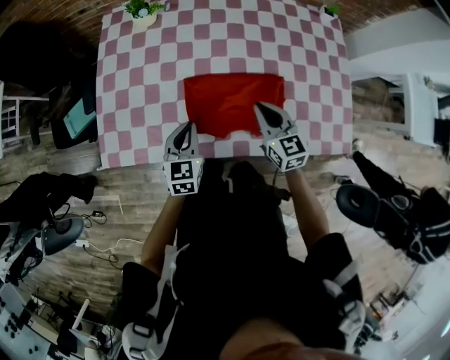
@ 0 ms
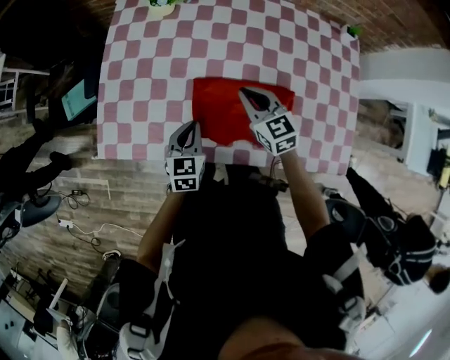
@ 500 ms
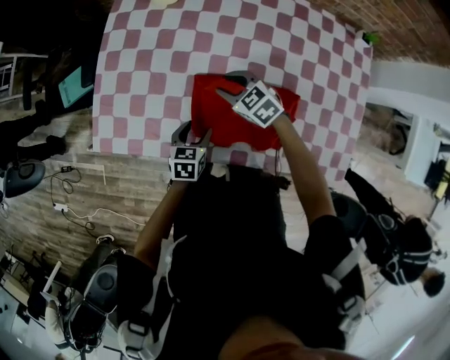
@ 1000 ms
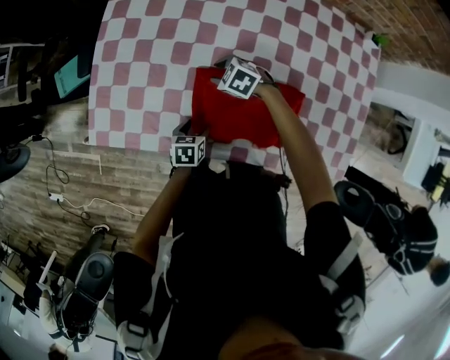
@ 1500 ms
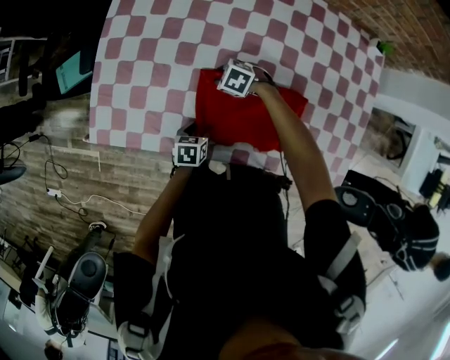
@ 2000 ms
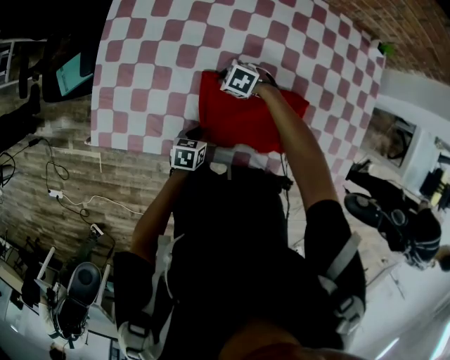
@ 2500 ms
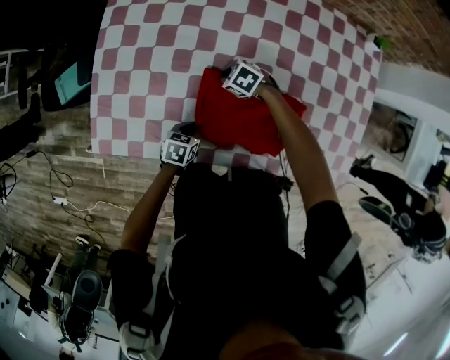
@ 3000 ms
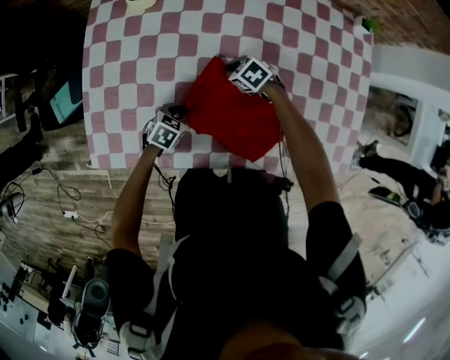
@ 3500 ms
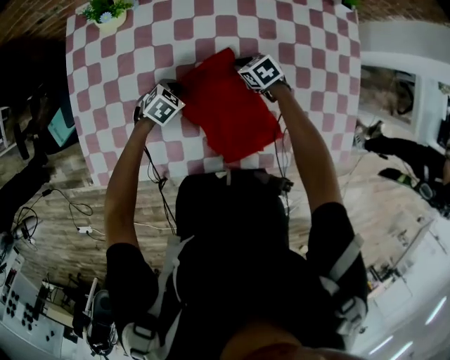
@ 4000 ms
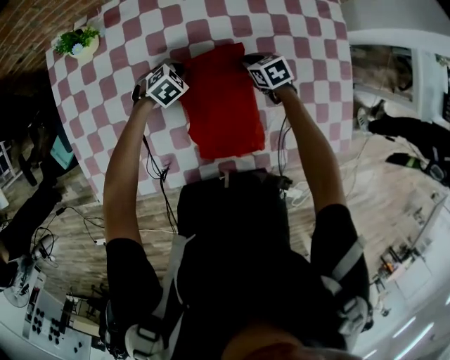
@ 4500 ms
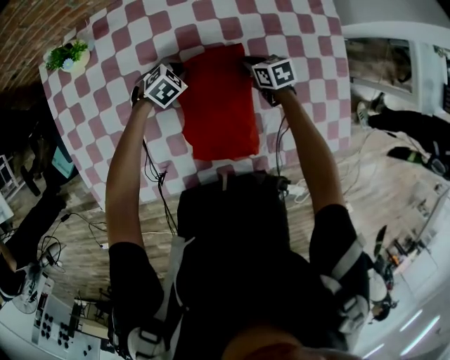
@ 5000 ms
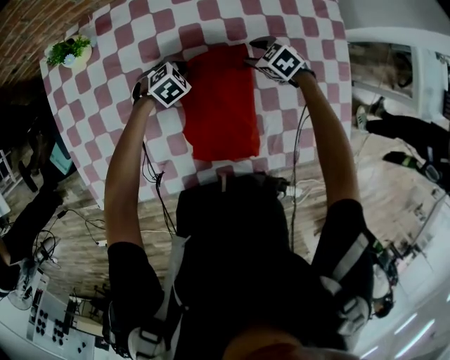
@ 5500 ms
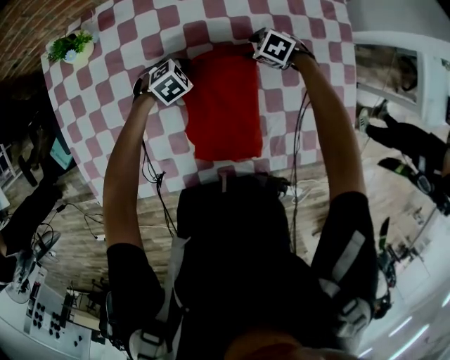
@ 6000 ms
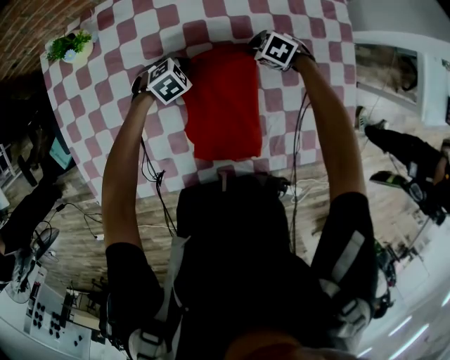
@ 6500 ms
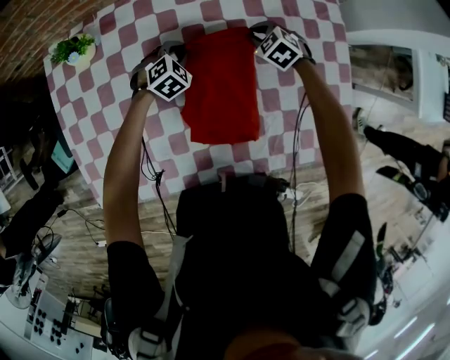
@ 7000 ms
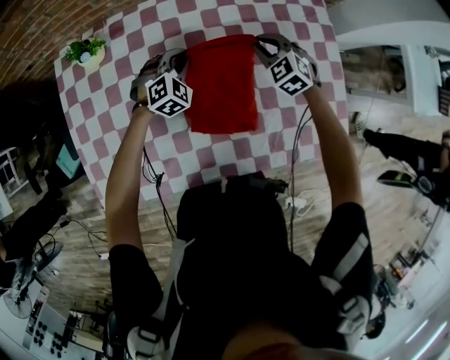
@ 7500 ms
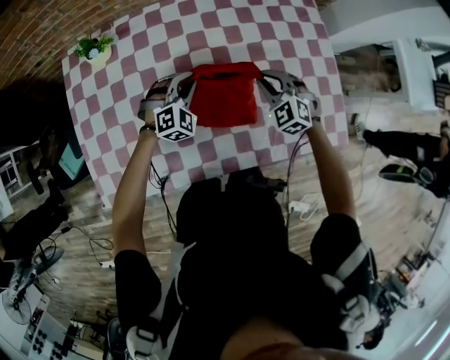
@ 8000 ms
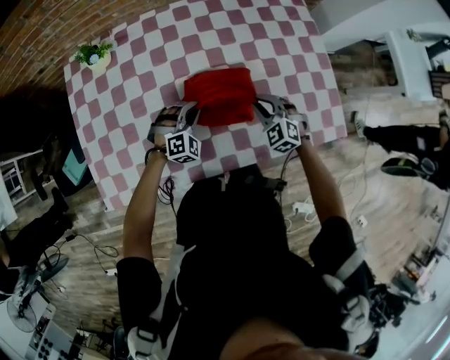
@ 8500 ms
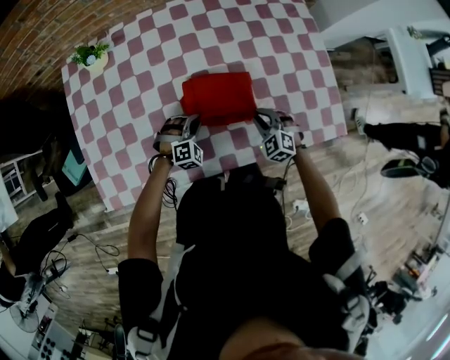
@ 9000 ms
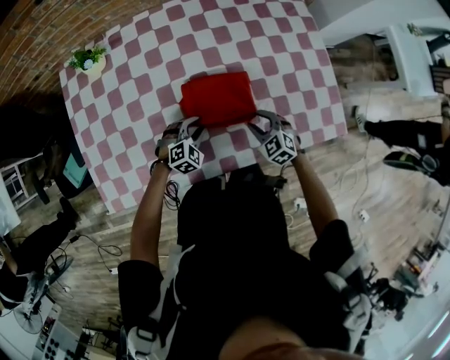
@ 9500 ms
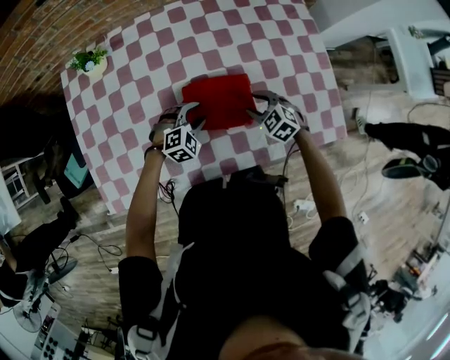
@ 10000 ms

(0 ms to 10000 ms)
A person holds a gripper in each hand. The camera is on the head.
0 ms - 2000 ms: Both grippers travel together downward, roughly 20 cm. The right gripper angles its fingers downward, by approximately 50 degrees, and opens. Meanwhile the left gripper changes its angle by about 40 degrees, and opens.
2000 ms - 4000 ms: The left gripper shifts by approximately 20 cm, twists some 60 degrees clockwise, seen from behind, and closes its fingers. The right gripper shifts by some 20 cm, rotates roughly 40 degrees, and closes.
4000 ms - 6000 ms: The left gripper shifts by roughly 15 cm, while the right gripper ends up about 15 cm from where it was, turns by approximately 20 degrees, and opens its fingers.
6000 ms - 8000 ms: The two grippers go about 15 cm upward. The right gripper tilts its fingers some 30 degrees upward, and closes, while the left gripper changes its angle by approximately 40 degrees.
8000 ms - 10000 ms: Both grippers move backward and downward, roughly 10 cm. The right gripper changes its angle by approximately 20 degrees, and opens its fingers. Meanwhile the left gripper changes its angle by roughly 20 degrees, and opens its fingers.

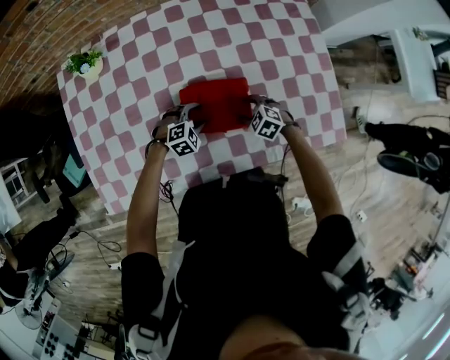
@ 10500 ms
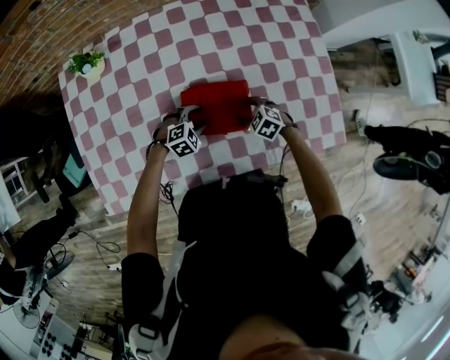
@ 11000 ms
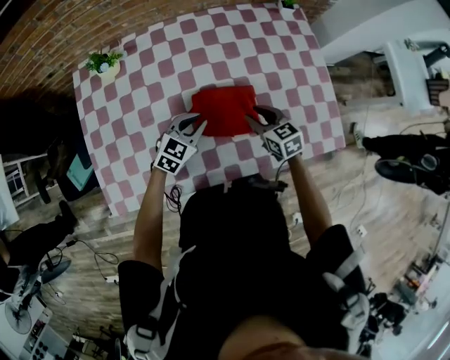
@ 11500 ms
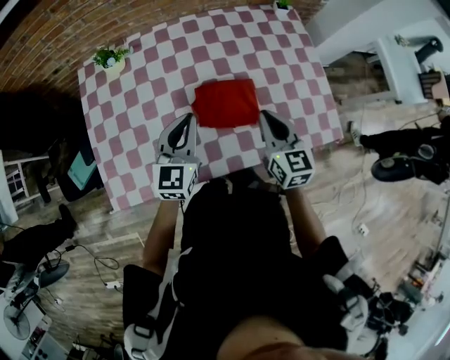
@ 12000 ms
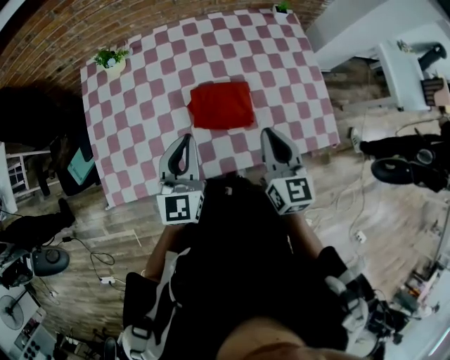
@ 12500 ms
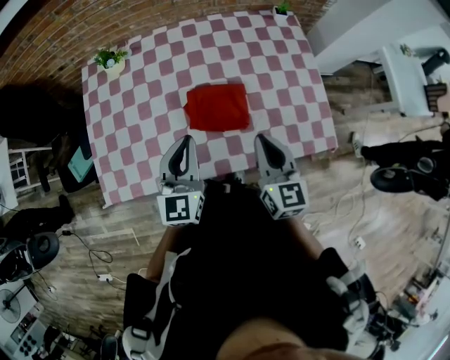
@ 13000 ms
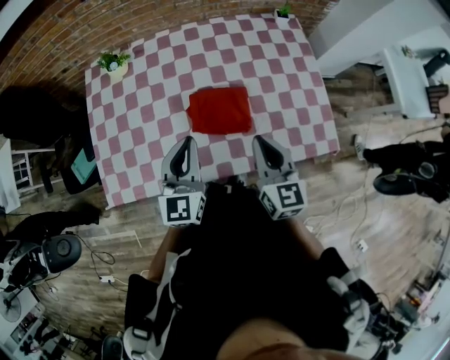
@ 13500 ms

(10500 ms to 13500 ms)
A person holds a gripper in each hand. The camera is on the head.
10500 ms - 12000 ms: Both grippers move upward, roughly 30 cm. The right gripper tips its fingers upward by some 50 degrees, and closes. The left gripper tips its fingers upward by some 50 degrees, and closes its fingers.
12000 ms - 13500 ms: The grippers both shift backward by approximately 5 cm.

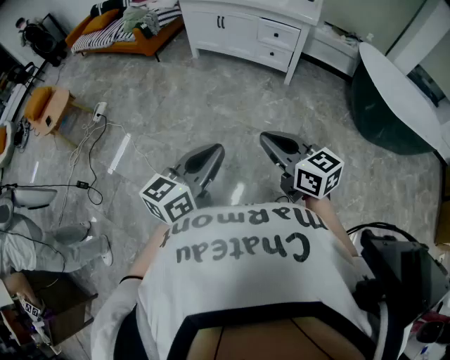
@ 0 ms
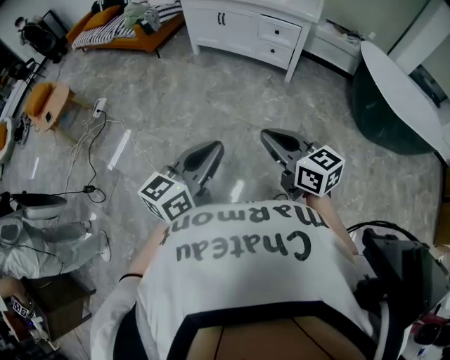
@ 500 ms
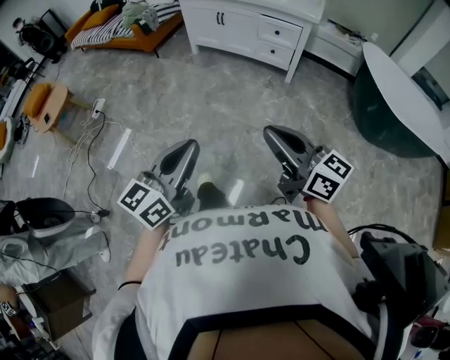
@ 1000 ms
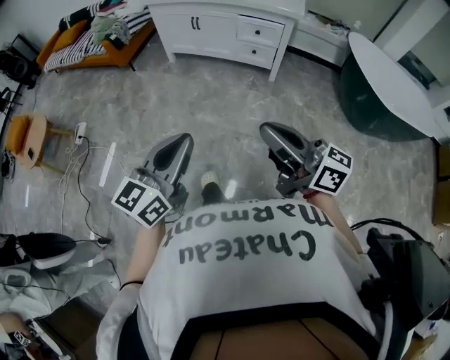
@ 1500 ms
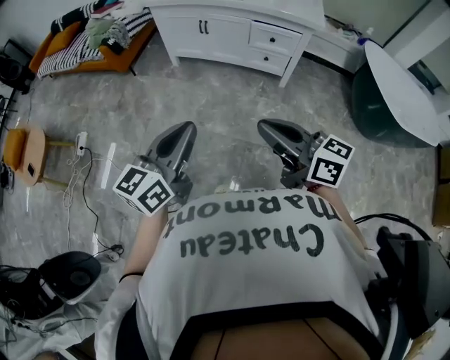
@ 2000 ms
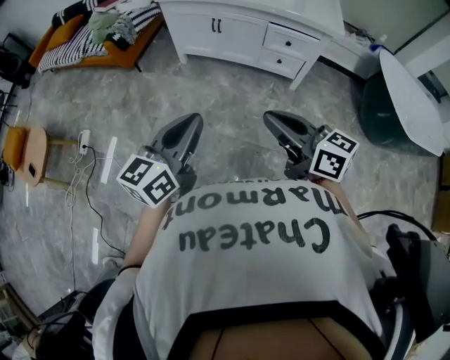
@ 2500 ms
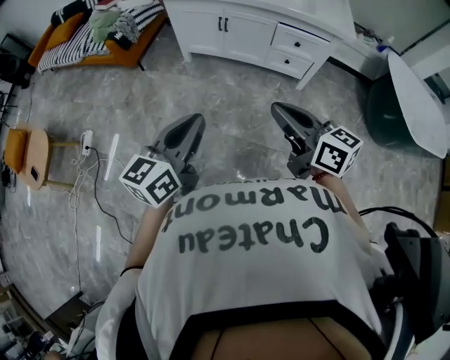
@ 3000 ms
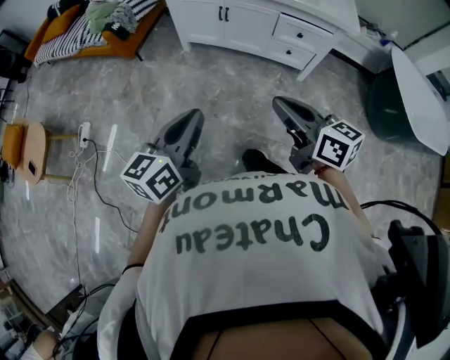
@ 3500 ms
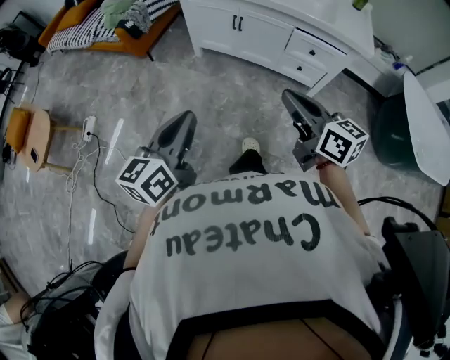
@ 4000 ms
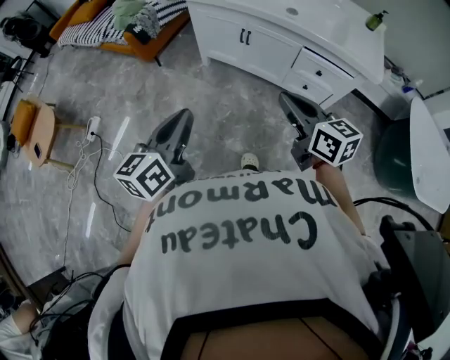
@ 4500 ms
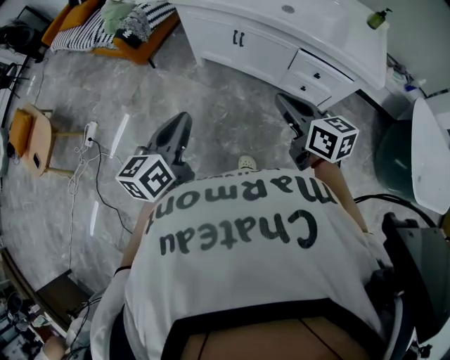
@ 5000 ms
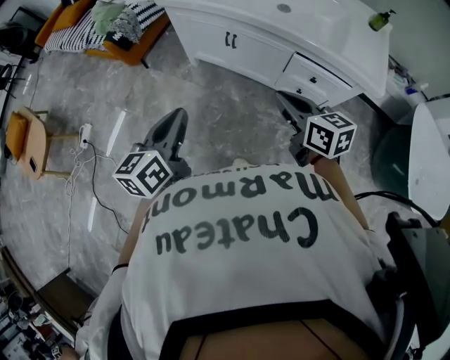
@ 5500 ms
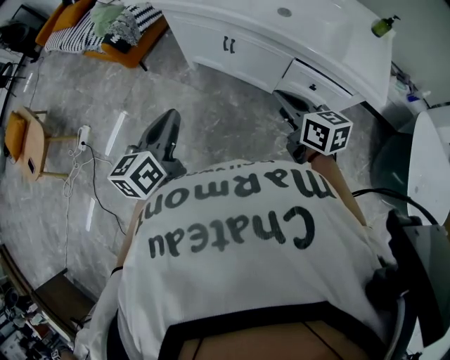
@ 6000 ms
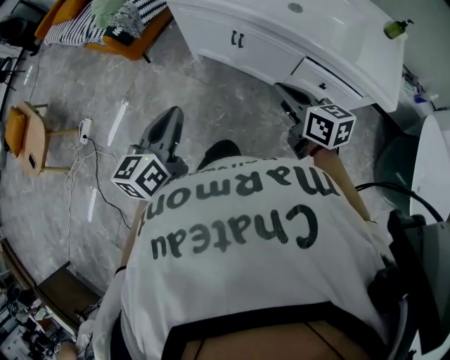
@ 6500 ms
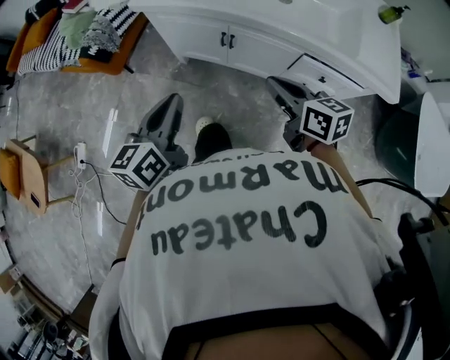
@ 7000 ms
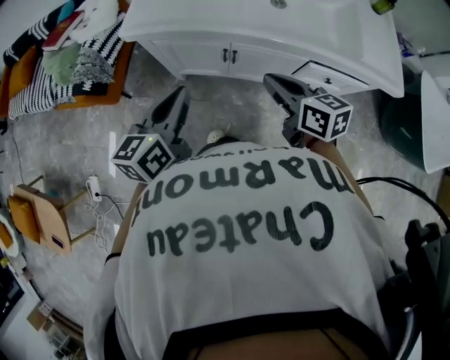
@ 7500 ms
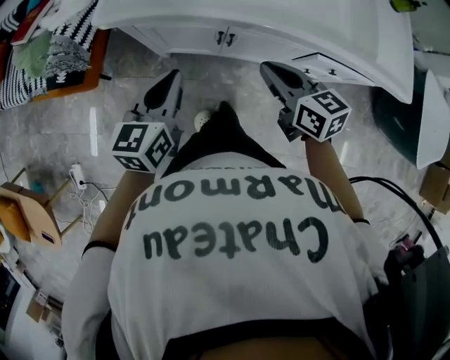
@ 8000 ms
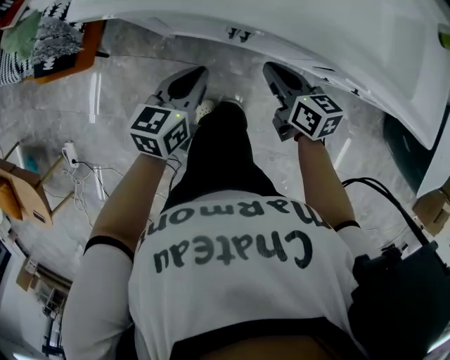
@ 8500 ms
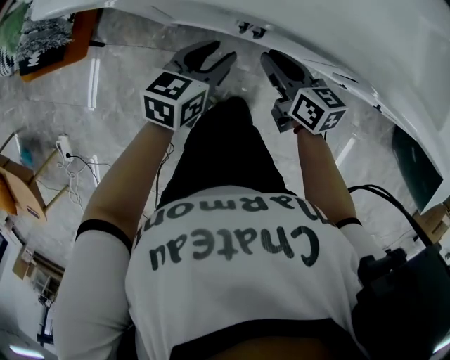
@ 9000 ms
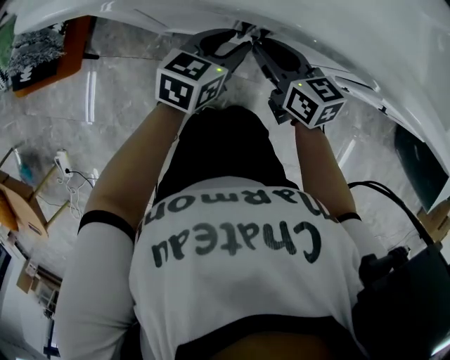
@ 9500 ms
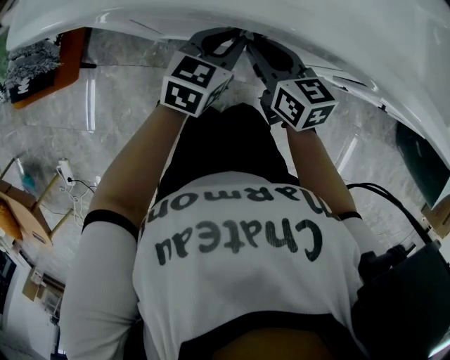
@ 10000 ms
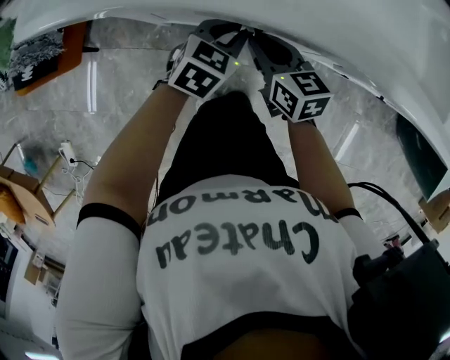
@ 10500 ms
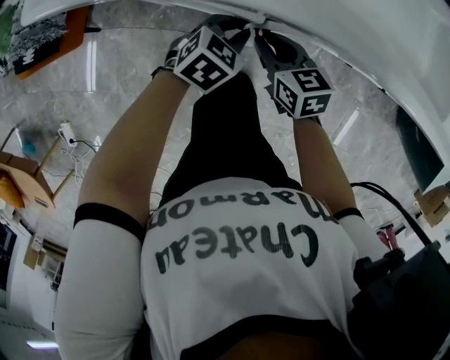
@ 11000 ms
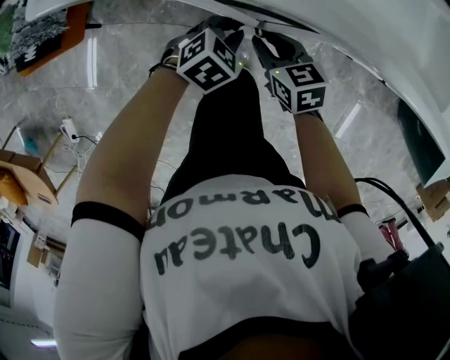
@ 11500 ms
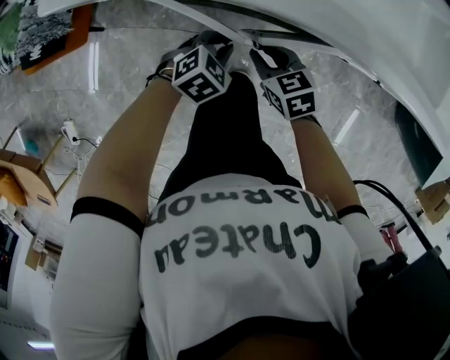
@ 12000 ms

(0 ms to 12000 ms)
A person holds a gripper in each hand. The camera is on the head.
0 ms - 2000 ms: The grippers both shift forward by about 30 cm.
2000 ms - 4000 ms: The left gripper goes about 20 cm forward and to the left. The right gripper moves forward, roughly 25 cm.
4000 ms - 6000 ms: The left gripper heads forward, covering about 25 cm, while the right gripper travels forward and to the right by some 25 cm.
6000 ms - 8000 ms: The right gripper shifts approximately 25 cm forward and to the left. The left gripper moves forward, roughly 30 cm, and turns by about 30 degrees.
8000 ms - 10000 ms: The left gripper goes approximately 35 cm downward, forward and to the right, and rotates about 20 degrees. The right gripper shifts about 25 cm downward and forward.
10000 ms - 12000 ms: Both grippers move backward, roughly 10 cm. The left gripper swivels some 40 degrees. Meanwhile the right gripper swivels some 30 degrees.

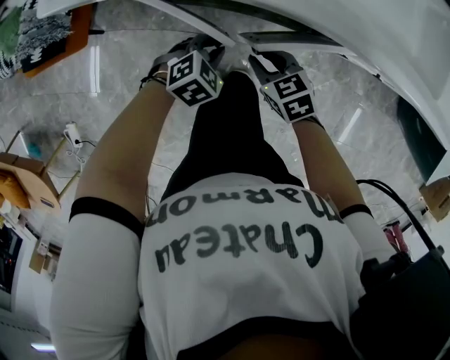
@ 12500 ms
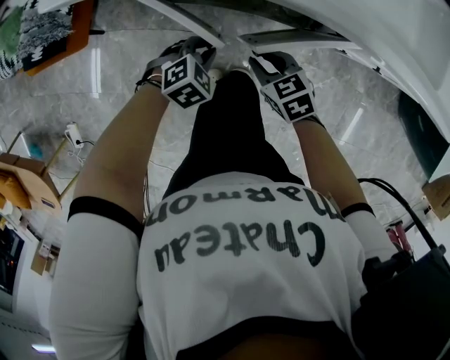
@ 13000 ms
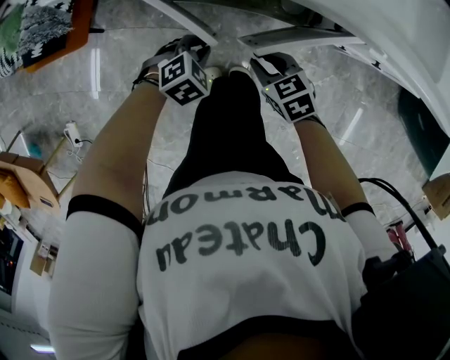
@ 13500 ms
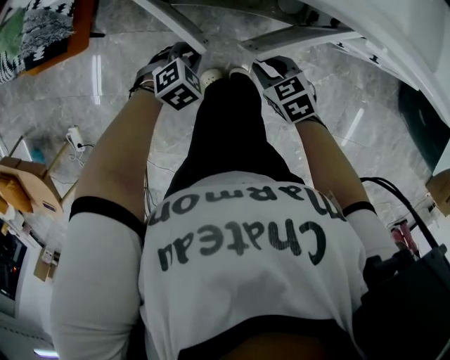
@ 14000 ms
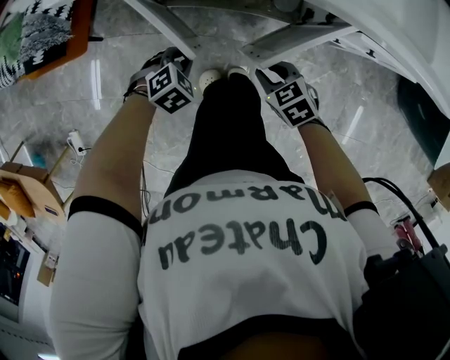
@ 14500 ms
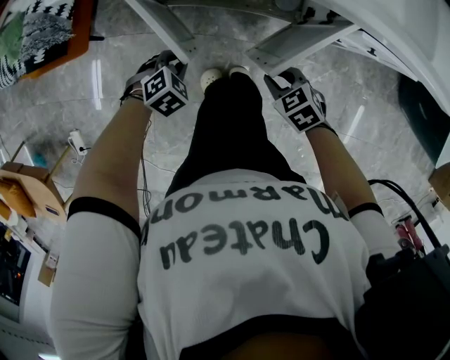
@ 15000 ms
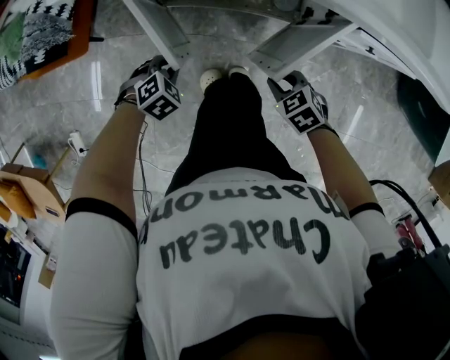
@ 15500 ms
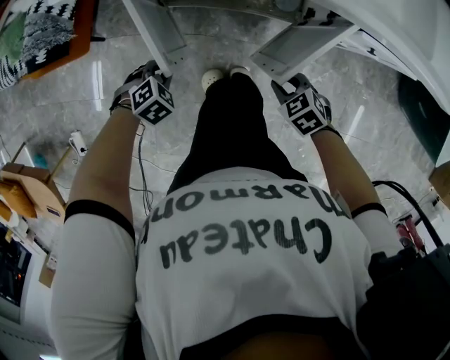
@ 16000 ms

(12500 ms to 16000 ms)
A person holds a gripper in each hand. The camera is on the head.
12500 ms - 14500 ms: The left gripper shifts about 10 cm to the left and backward. The right gripper heads backward, covering about 10 cm.
14500 ms - 16000 ms: The left gripper moves some 10 cm, while the right gripper moves some 5 cm.
